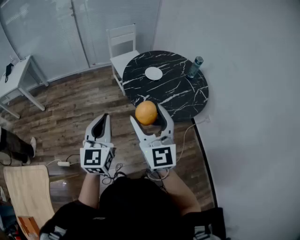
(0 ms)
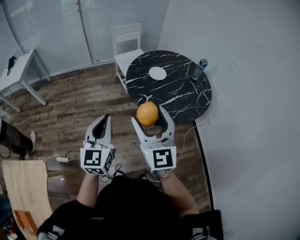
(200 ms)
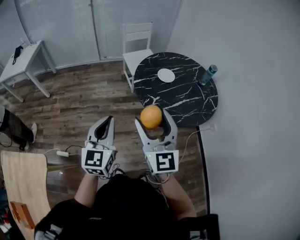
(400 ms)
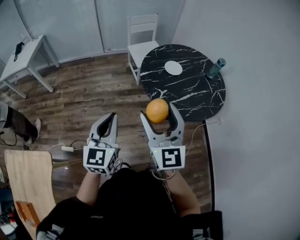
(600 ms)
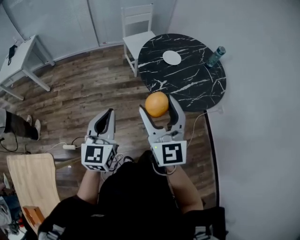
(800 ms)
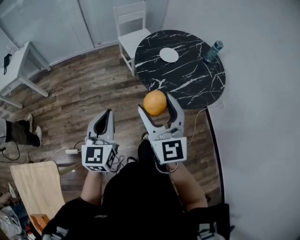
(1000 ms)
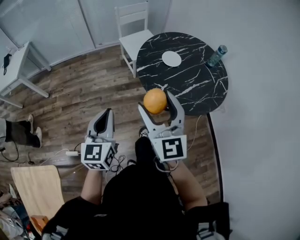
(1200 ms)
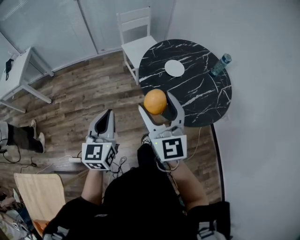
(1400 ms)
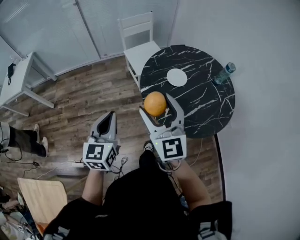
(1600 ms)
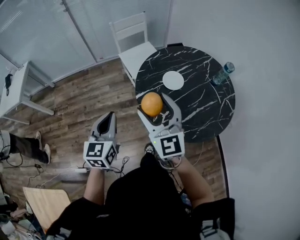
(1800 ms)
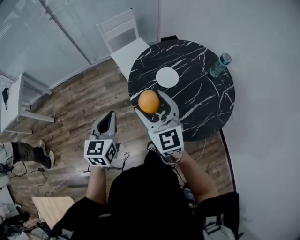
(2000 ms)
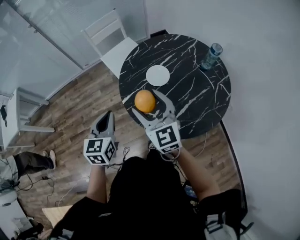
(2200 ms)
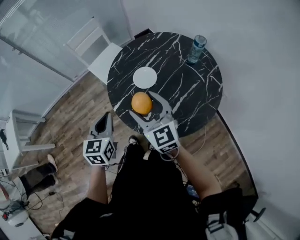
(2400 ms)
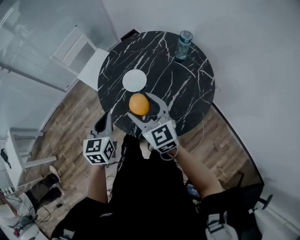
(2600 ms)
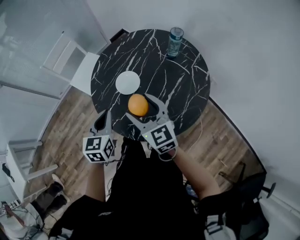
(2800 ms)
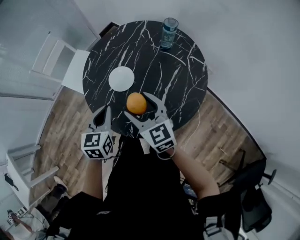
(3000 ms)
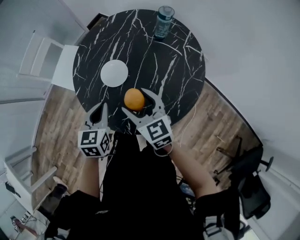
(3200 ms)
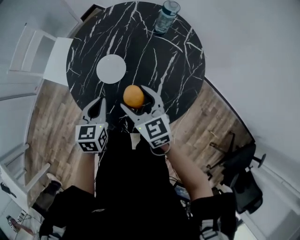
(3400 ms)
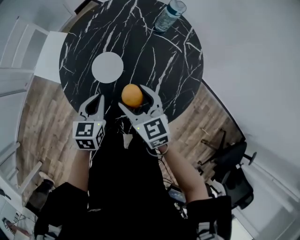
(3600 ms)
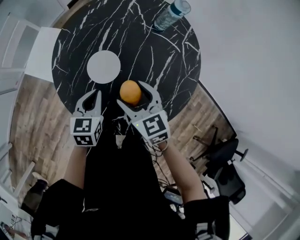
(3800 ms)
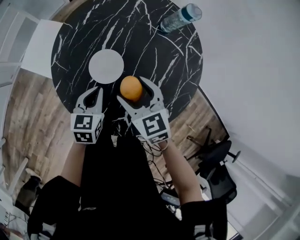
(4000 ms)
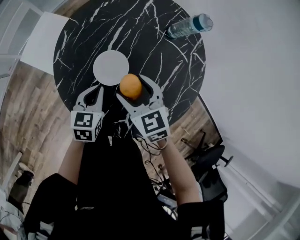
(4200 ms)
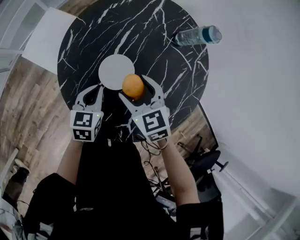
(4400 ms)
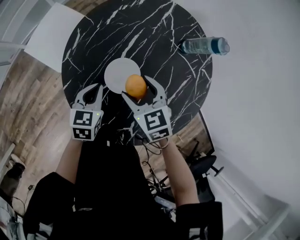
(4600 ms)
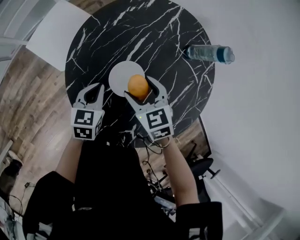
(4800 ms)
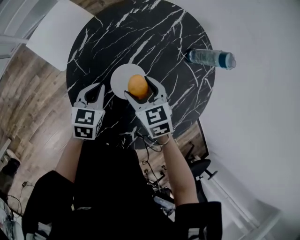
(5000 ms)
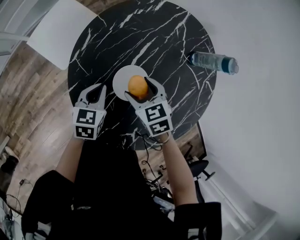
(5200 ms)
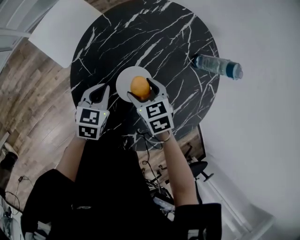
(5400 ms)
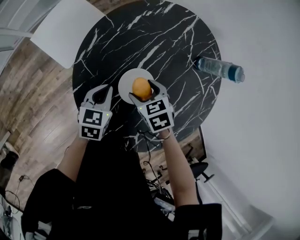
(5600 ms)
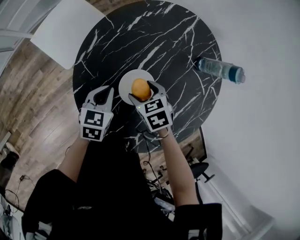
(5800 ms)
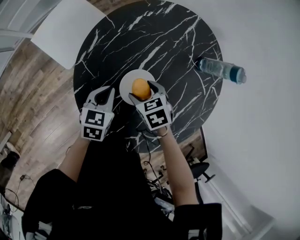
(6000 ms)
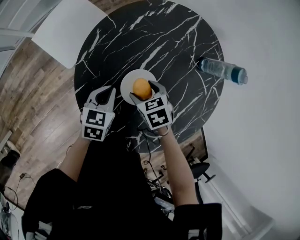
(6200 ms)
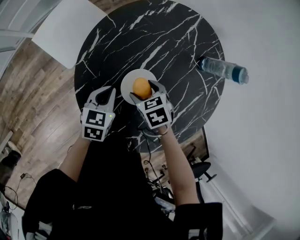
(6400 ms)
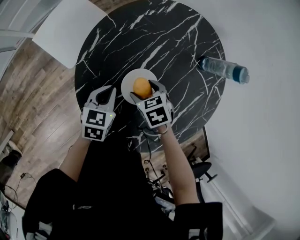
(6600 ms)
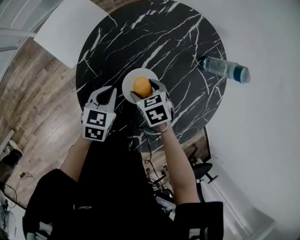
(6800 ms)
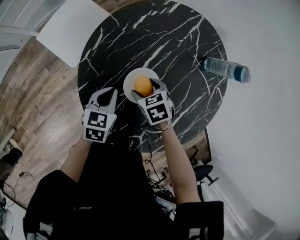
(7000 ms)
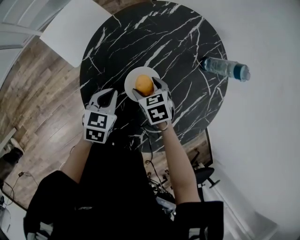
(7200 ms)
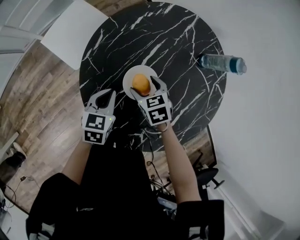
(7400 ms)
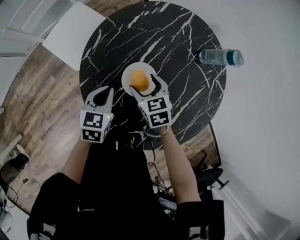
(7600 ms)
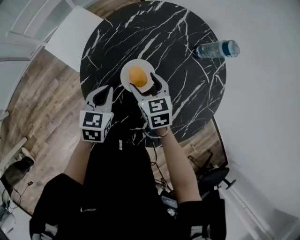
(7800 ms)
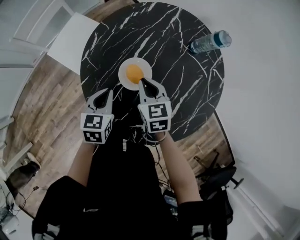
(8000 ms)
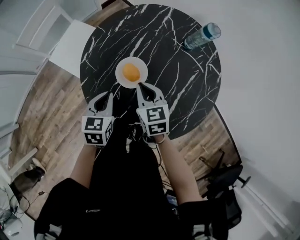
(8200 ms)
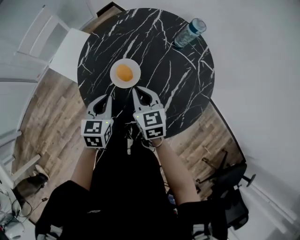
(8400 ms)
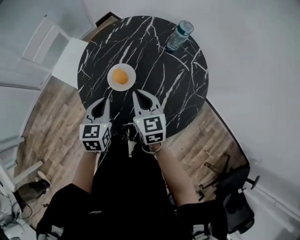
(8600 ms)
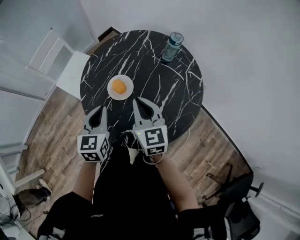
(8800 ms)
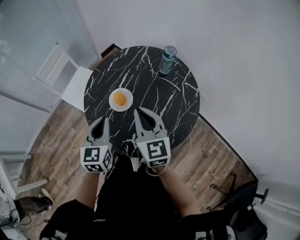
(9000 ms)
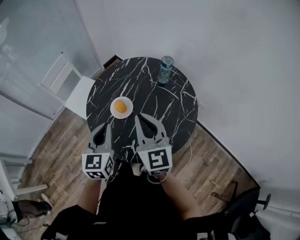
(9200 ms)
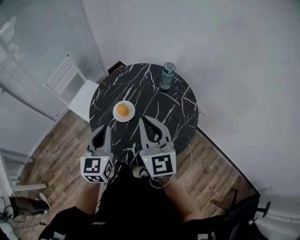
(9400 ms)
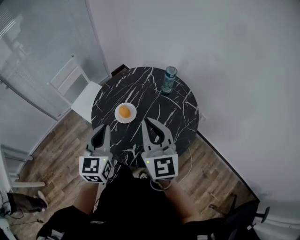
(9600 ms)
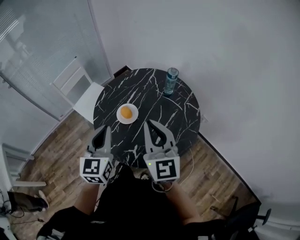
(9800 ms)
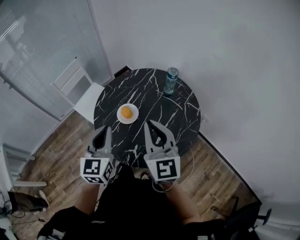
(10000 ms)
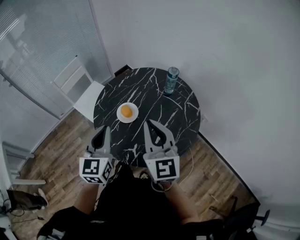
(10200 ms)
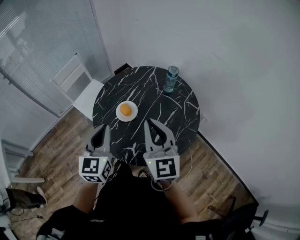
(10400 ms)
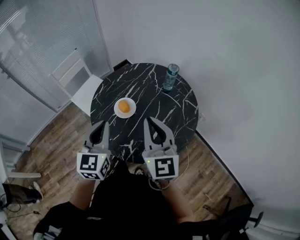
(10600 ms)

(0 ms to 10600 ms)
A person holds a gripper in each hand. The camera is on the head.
0 ms - 1600 ms: Both grippers move forward, roughly 25 cm.
1600 ms - 3000 ms: The right gripper ends up about 30 cm from where it was, and changes its angle by some 30 degrees. The left gripper shifts by roughly 35 cm, and changes its angle by approximately 40 degrees.
3000 ms - 4600 ms: The right gripper shifts about 25 cm forward, downward and to the left, and rotates roughly 30 degrees, while the left gripper heads downward, forward and to the left, covering about 25 cm.
4600 ms - 6000 ms: The left gripper ends up some 5 cm from where it was; the right gripper travels downward by roughly 10 cm, and turns by roughly 30 degrees.
6000 ms - 7600 ms: The right gripper turns by about 20 degrees; the left gripper is displaced upward by approximately 5 cm.
7600 ms - 9000 ms: The left gripper heads upward, backward and to the right, covering roughly 30 cm, and rotates roughly 30 degrees. The right gripper heads upward and backward, covering some 35 cm, tips its fingers upward by about 40 degrees, and closes up.
9000 ms - 10600 ms: Both grippers travel together upward and backward, roughly 10 cm.

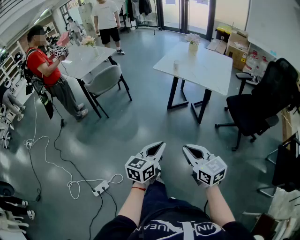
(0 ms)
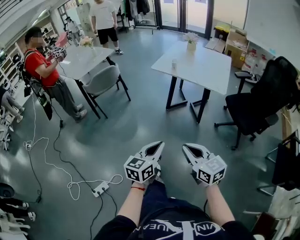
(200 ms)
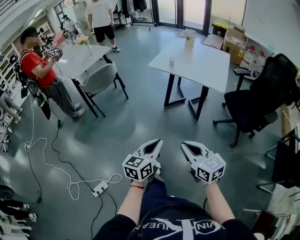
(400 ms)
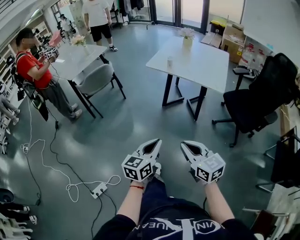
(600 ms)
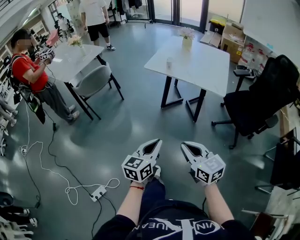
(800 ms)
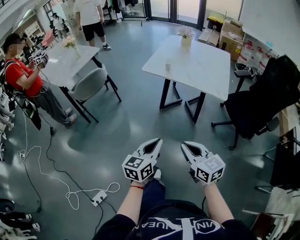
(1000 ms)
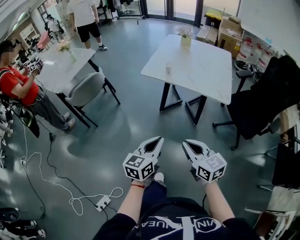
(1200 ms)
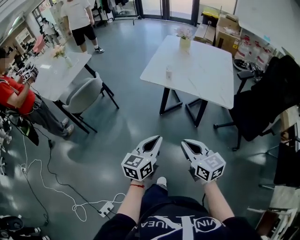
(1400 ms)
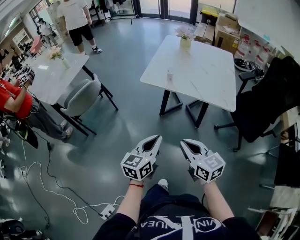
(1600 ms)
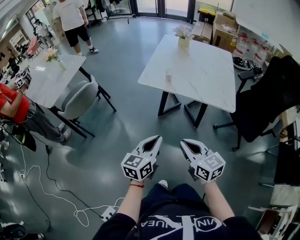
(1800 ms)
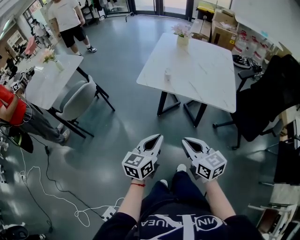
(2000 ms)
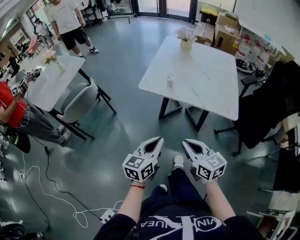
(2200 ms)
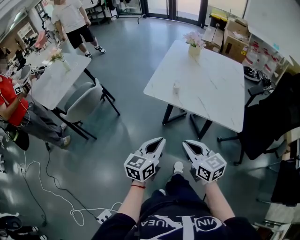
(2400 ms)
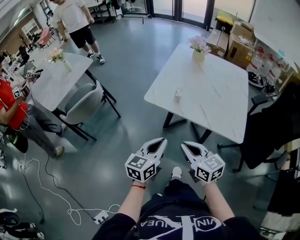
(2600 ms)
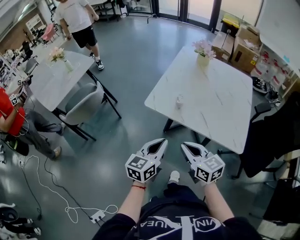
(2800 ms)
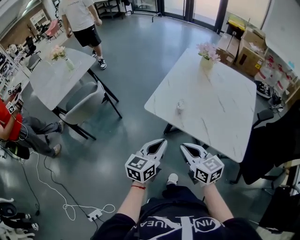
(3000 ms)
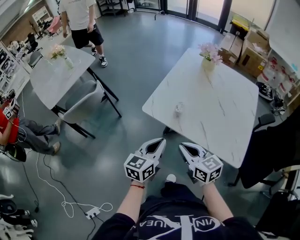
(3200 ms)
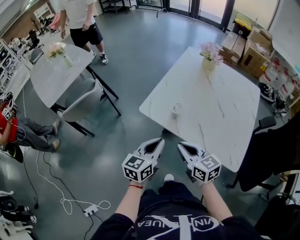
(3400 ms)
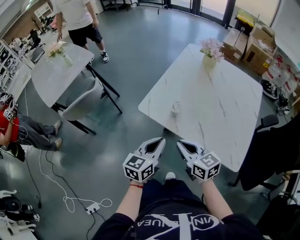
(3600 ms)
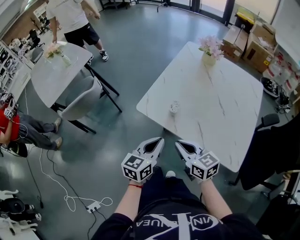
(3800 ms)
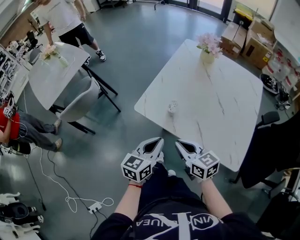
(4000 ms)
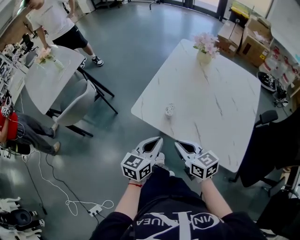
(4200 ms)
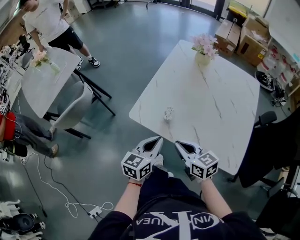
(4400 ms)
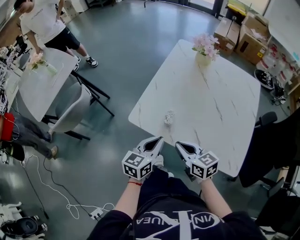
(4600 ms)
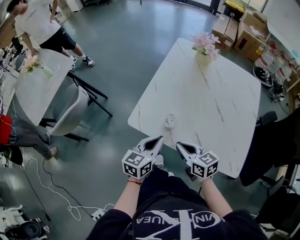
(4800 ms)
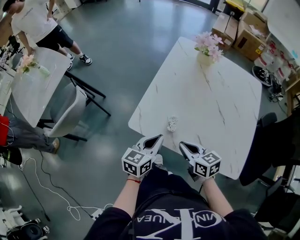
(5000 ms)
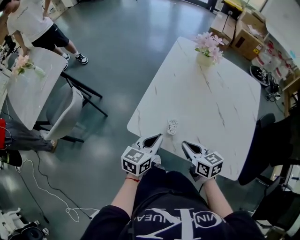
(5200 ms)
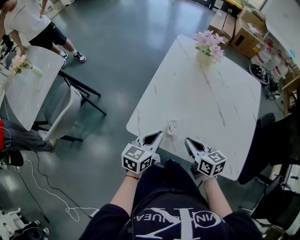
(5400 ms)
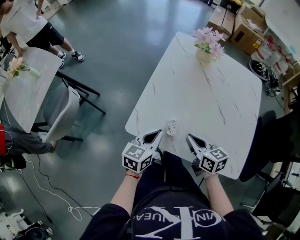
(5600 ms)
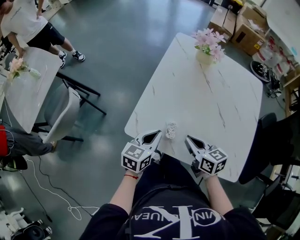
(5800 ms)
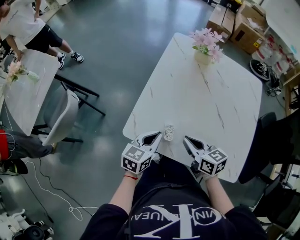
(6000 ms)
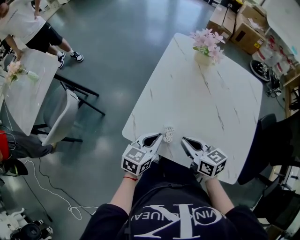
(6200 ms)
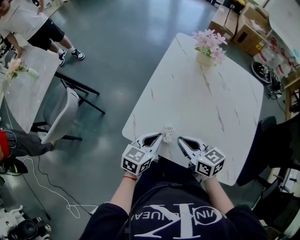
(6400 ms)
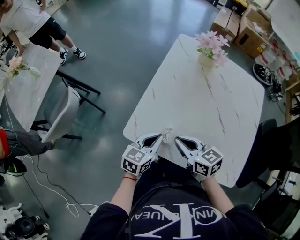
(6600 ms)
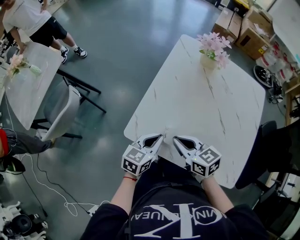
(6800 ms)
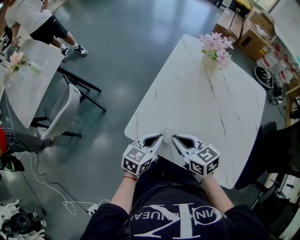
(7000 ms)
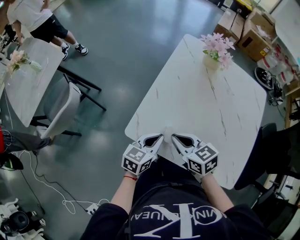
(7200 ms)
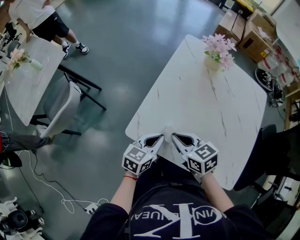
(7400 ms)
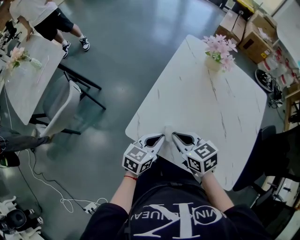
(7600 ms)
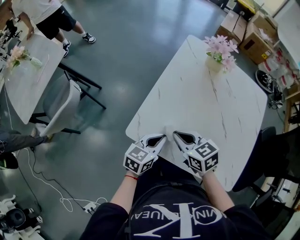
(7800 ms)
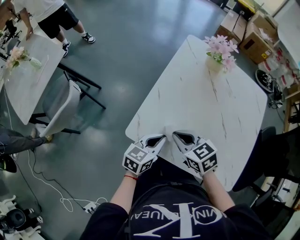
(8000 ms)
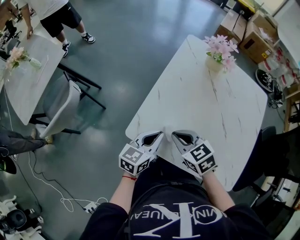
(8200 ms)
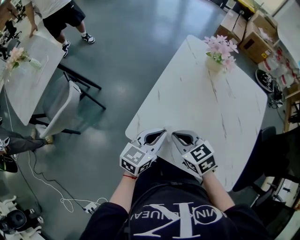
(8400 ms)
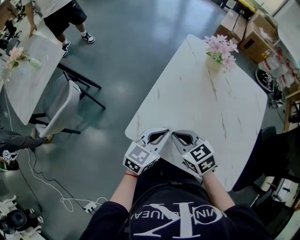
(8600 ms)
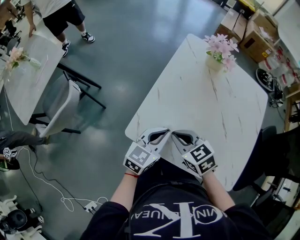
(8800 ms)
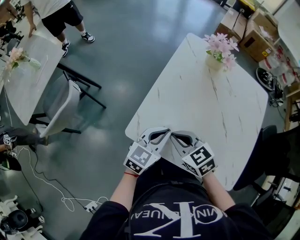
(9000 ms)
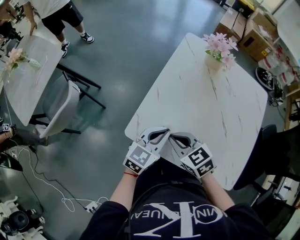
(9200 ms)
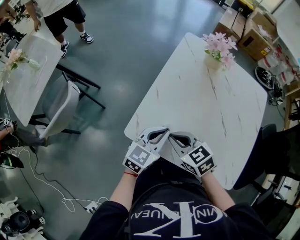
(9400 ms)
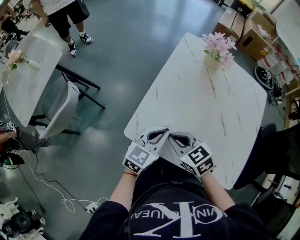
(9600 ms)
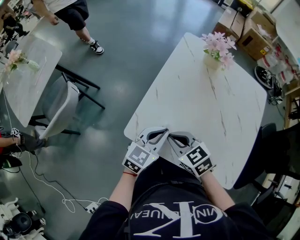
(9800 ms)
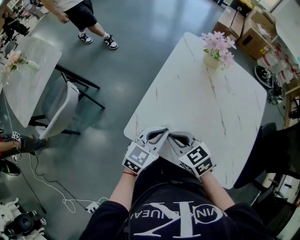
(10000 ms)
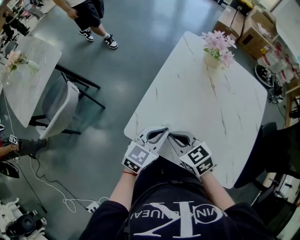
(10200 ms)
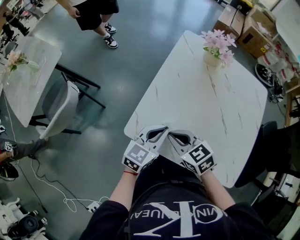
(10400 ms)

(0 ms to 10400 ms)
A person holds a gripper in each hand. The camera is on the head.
0 ms - 1400 ms: Both grippers travel together forward, some 30 cm.
1400 ms - 3000 ms: Both grippers travel together forward, approximately 30 cm.
3000 ms - 4400 ms: The right gripper shifts approximately 15 cm forward, to the right and downward. Meanwhile the left gripper heads forward and to the right, covering roughly 10 cm.
4400 ms - 6000 ms: The right gripper shifts roughly 10 cm forward, while the left gripper goes about 15 cm forward and downward.
6000 ms - 7400 ms: The right gripper travels to the left by roughly 5 cm.
7400 ms - 9000 ms: The left gripper shifts by roughly 5 cm.
9000 ms - 10400 ms: Neither gripper changes place.

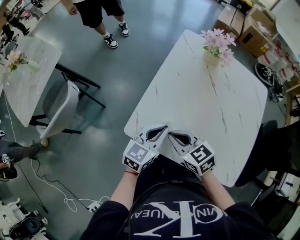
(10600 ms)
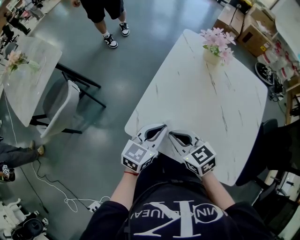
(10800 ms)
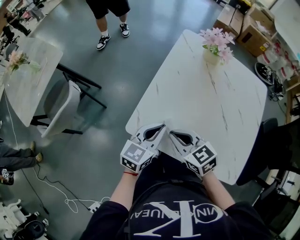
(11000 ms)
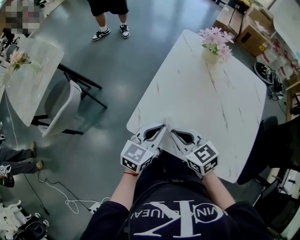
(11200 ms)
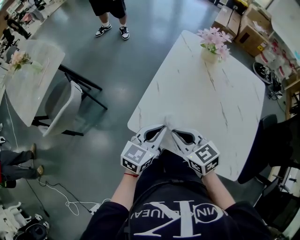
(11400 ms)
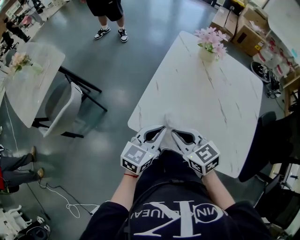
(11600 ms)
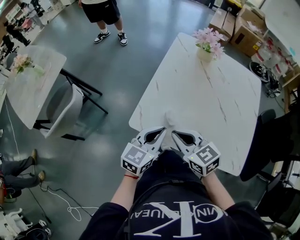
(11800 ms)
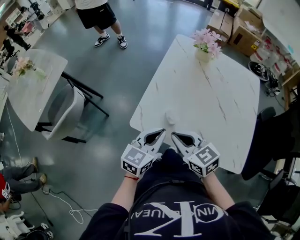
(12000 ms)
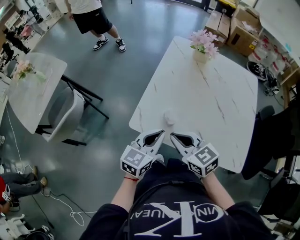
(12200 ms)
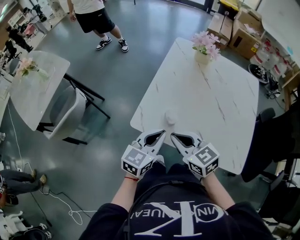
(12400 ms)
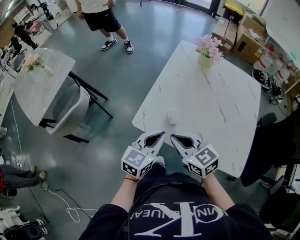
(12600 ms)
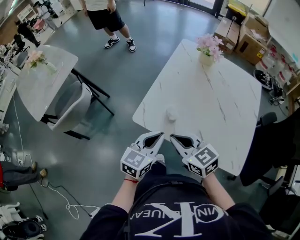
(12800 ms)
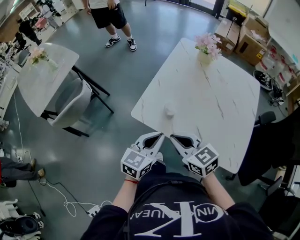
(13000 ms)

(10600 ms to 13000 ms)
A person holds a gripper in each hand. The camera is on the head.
10600 ms - 11800 ms: Both grippers move backward, approximately 5 cm.
11800 ms - 13000 ms: The grippers both shift backward by roughly 10 cm.
